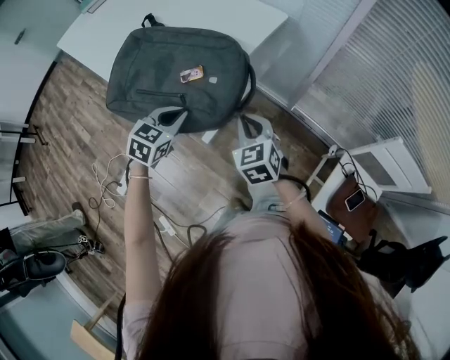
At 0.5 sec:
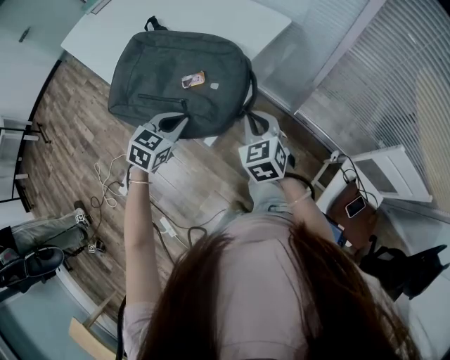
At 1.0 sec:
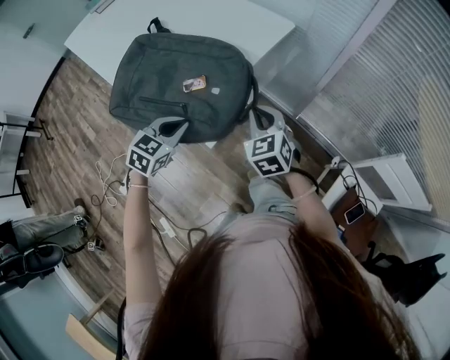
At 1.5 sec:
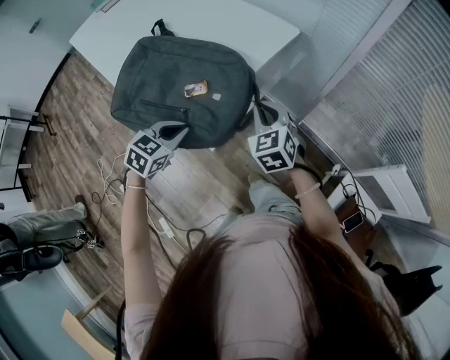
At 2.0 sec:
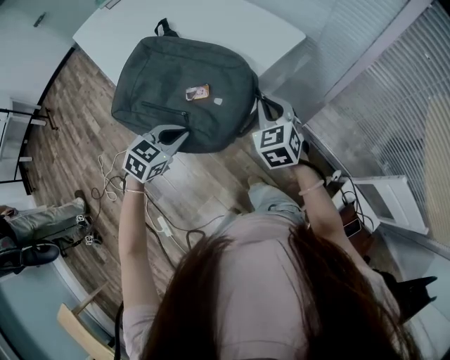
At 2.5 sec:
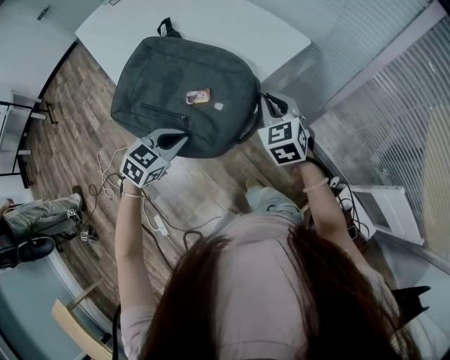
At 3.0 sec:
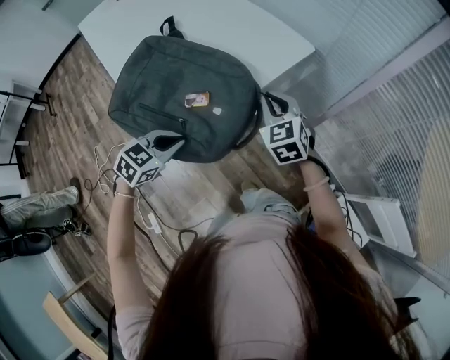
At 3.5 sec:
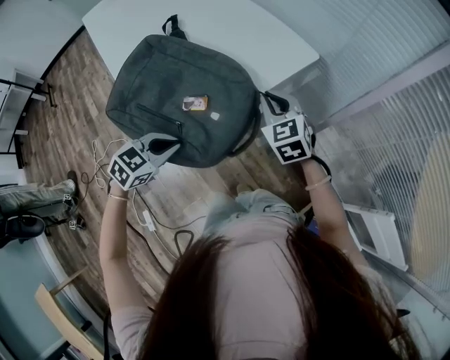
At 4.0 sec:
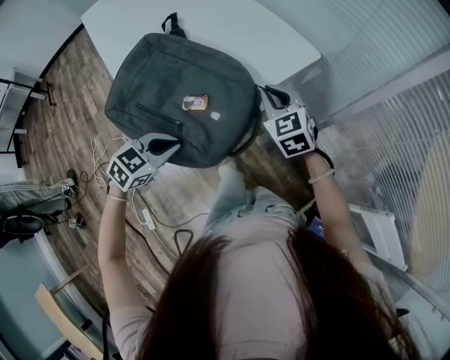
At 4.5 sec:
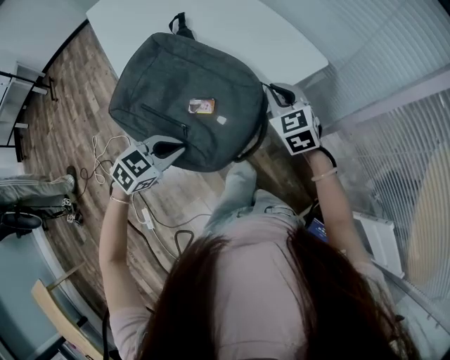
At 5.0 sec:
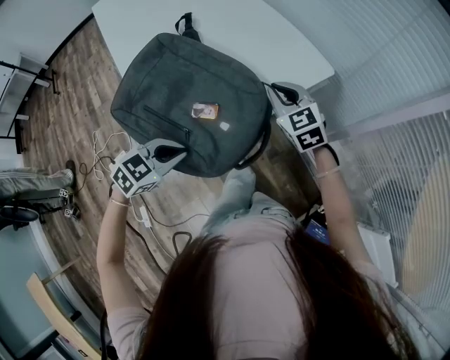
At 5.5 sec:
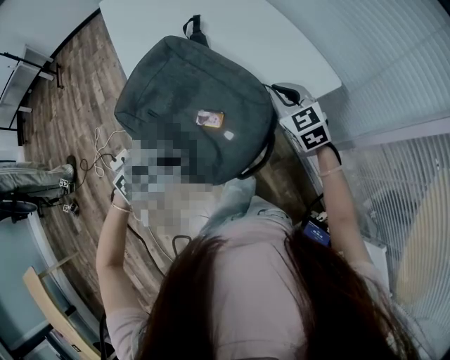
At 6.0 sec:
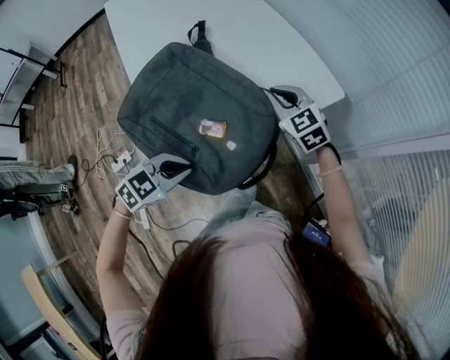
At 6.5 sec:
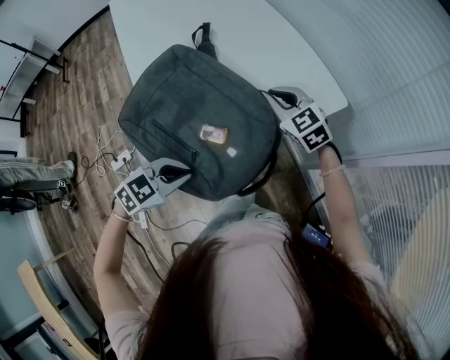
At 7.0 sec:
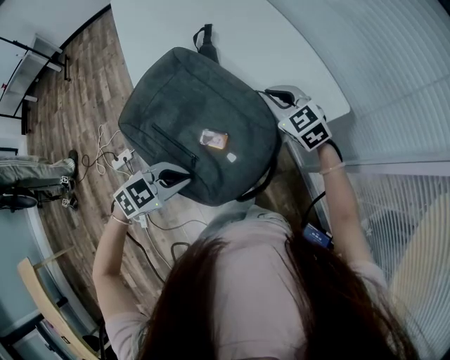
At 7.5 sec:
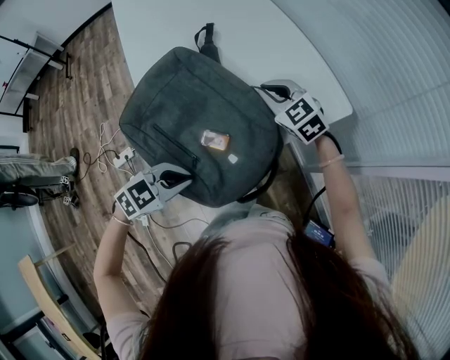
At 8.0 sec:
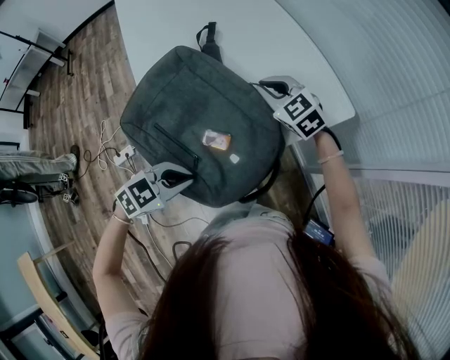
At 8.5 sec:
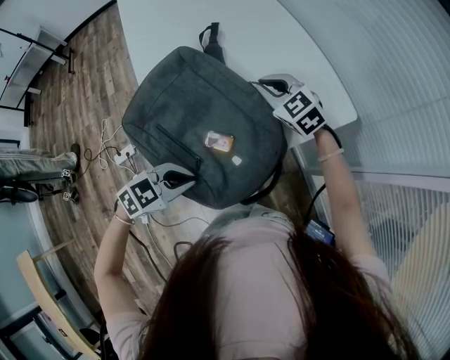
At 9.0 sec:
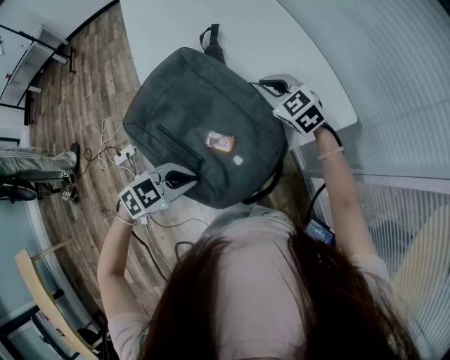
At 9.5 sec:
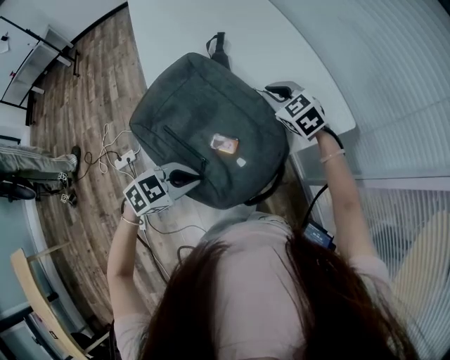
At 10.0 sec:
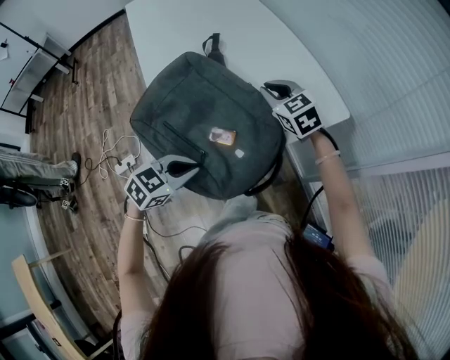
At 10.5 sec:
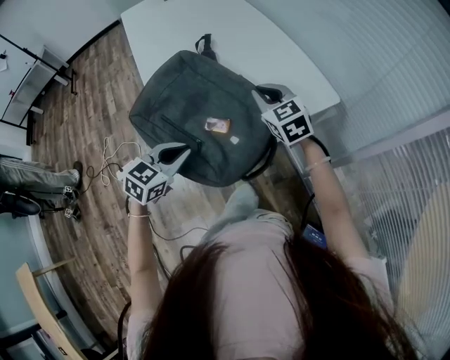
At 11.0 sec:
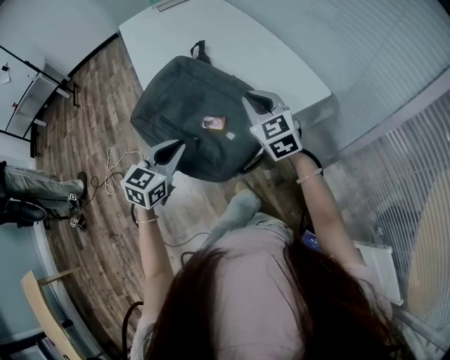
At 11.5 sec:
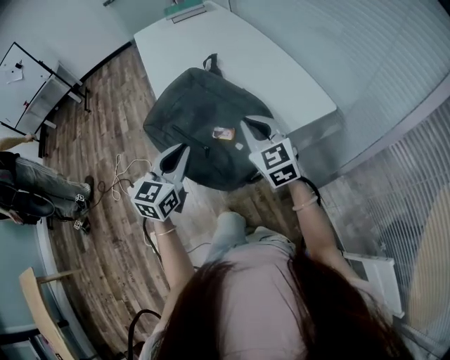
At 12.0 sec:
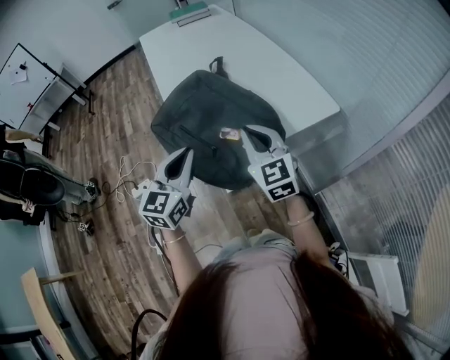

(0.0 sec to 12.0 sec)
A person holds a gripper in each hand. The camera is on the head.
0.0 sec - 2.0 sec: The right gripper is displaced forward by roughly 15 cm.
2.0 sec - 4.0 sec: The right gripper goes about 10 cm forward.
4.0 sec - 6.0 sec: The right gripper heads forward and to the left, covering some 10 cm.
6.0 sec - 8.0 sec: The right gripper moves to the left and forward, roughly 10 cm.
8.0 sec - 10.0 sec: There are only small adjustments of the grippers.
10.0 sec - 12.0 sec: The right gripper travels backward and upward by some 20 cm, and turns by about 20 degrees; the left gripper moves upward, about 15 cm, and tilts its fingers about 30 degrees upward.

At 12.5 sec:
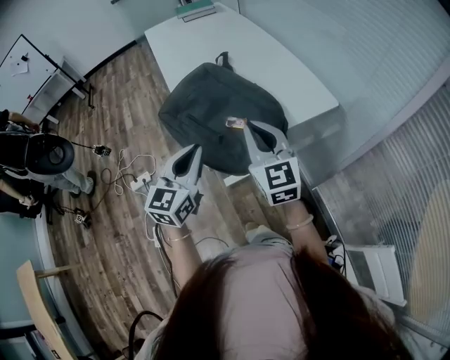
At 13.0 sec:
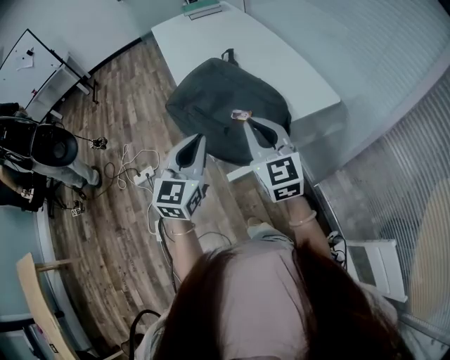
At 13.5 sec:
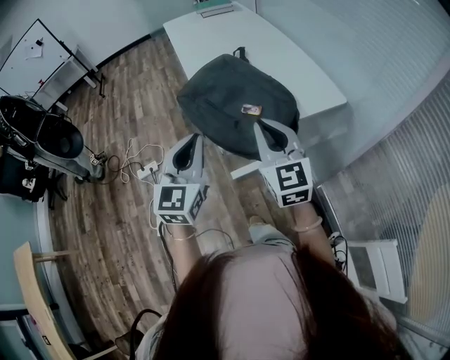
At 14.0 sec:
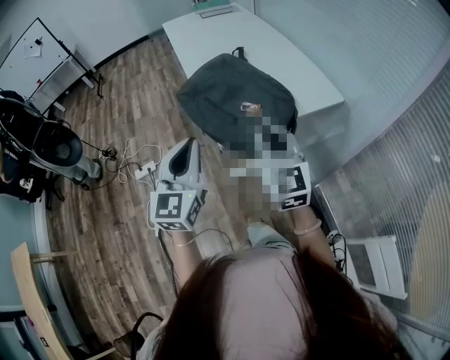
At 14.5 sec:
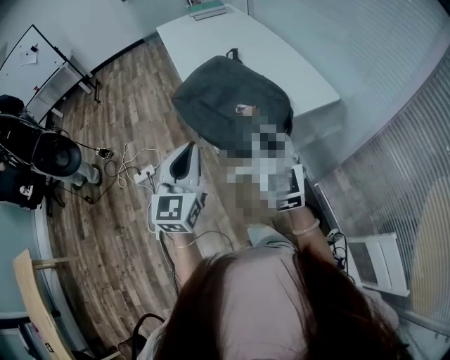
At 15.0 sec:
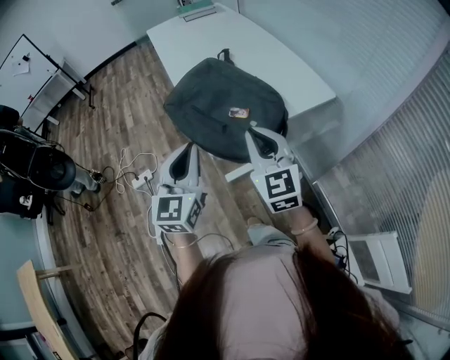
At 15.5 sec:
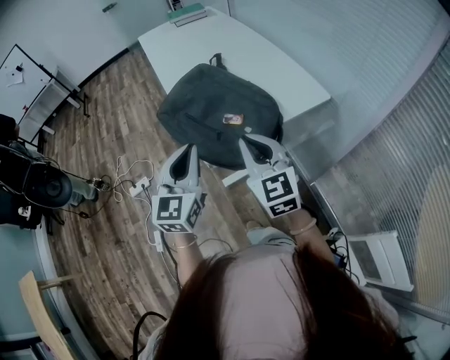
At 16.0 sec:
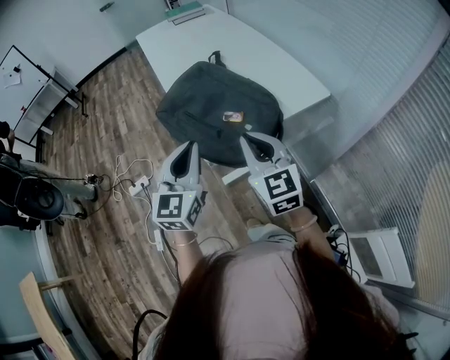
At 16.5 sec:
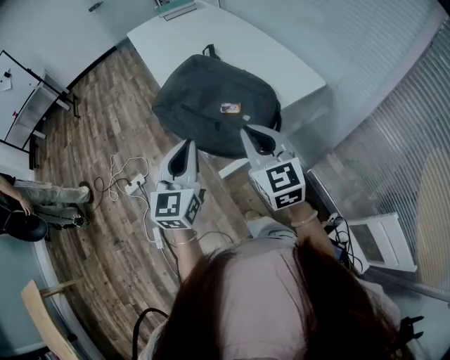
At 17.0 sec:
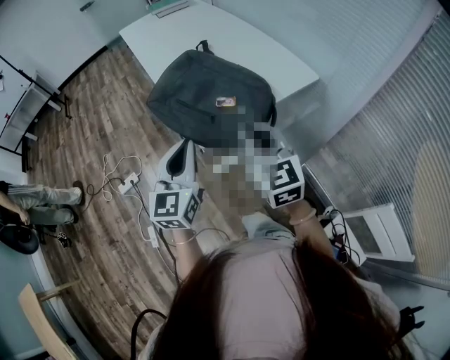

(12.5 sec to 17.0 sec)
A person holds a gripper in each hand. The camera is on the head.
12.5 sec - 14.5 sec: Both grippers travel together backward, some 10 cm.

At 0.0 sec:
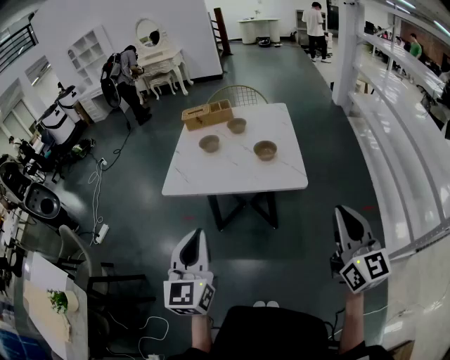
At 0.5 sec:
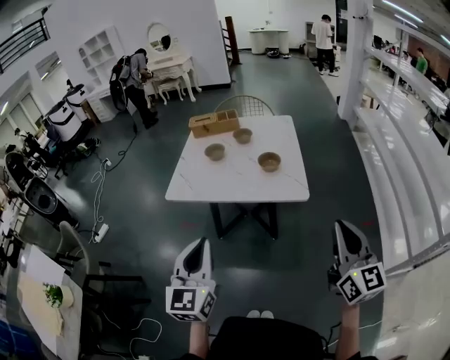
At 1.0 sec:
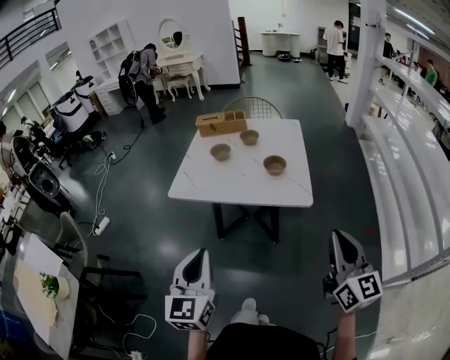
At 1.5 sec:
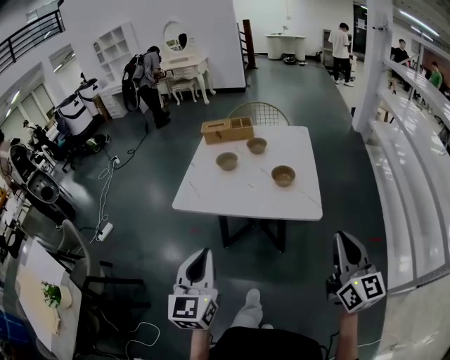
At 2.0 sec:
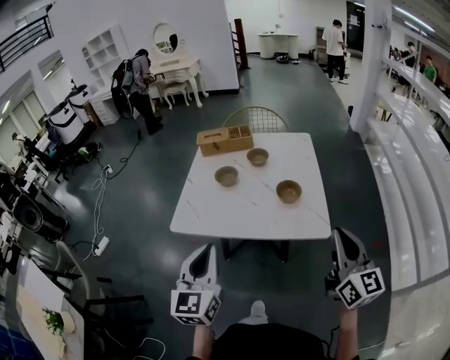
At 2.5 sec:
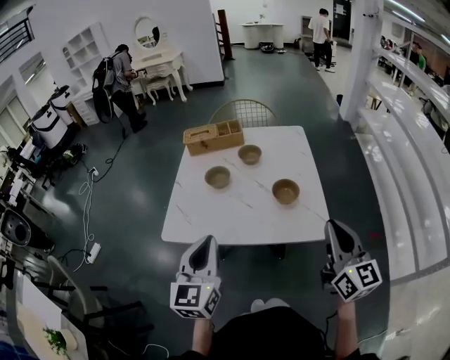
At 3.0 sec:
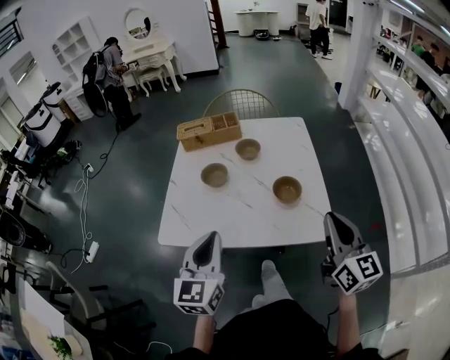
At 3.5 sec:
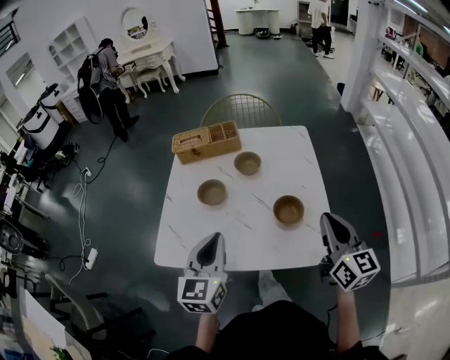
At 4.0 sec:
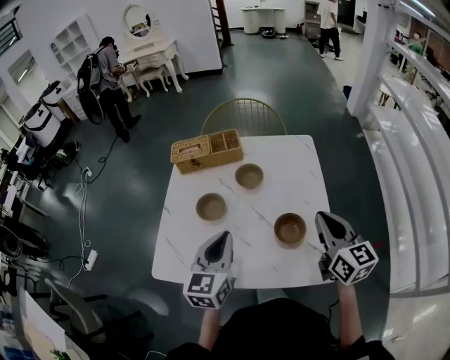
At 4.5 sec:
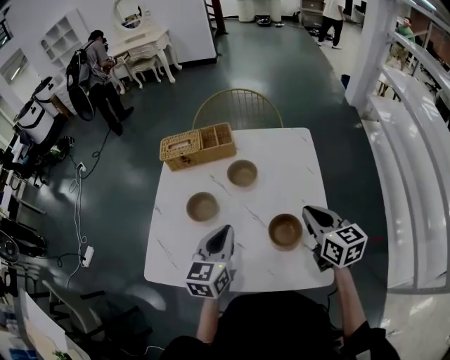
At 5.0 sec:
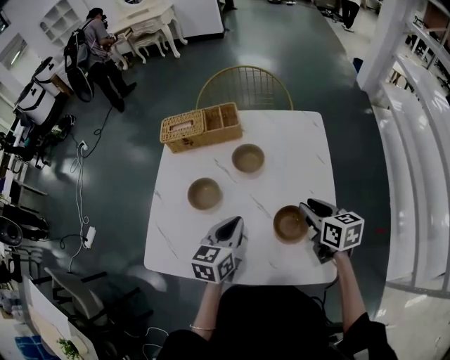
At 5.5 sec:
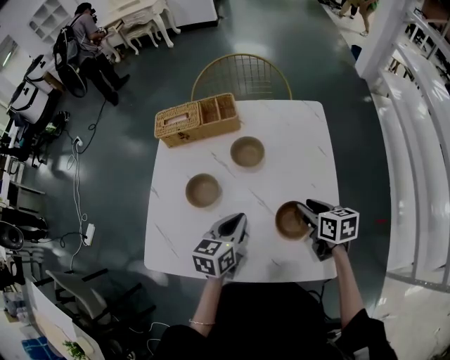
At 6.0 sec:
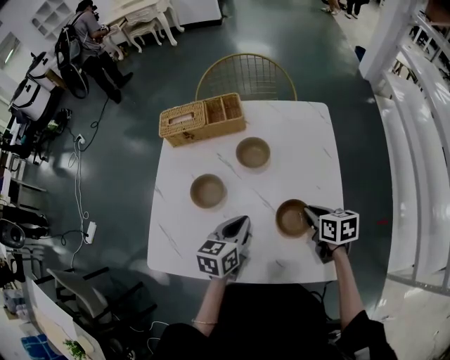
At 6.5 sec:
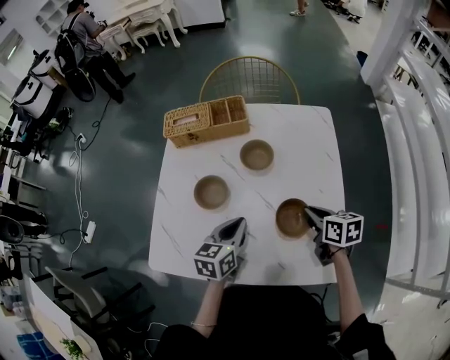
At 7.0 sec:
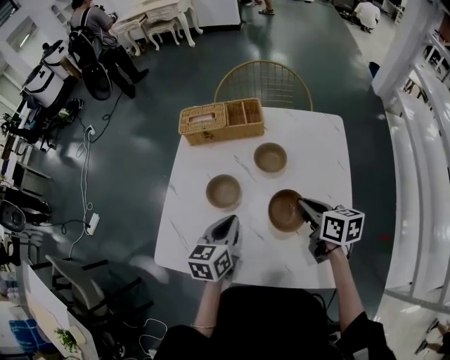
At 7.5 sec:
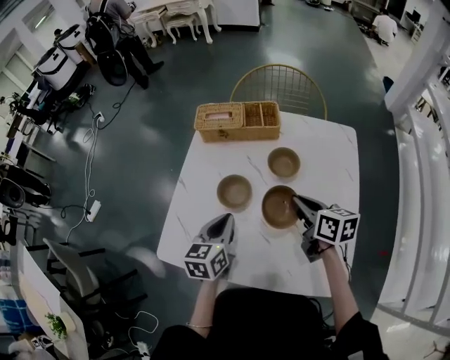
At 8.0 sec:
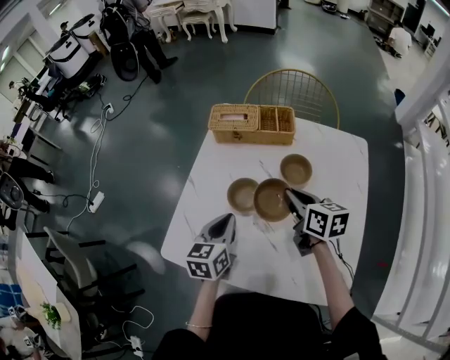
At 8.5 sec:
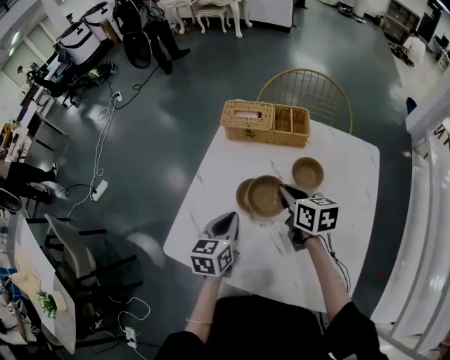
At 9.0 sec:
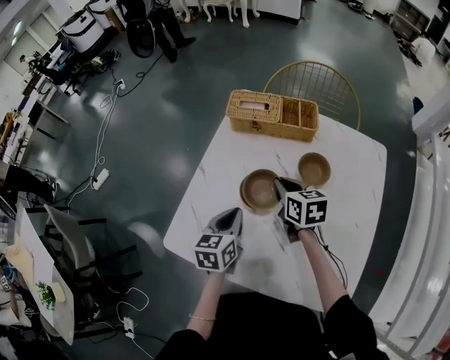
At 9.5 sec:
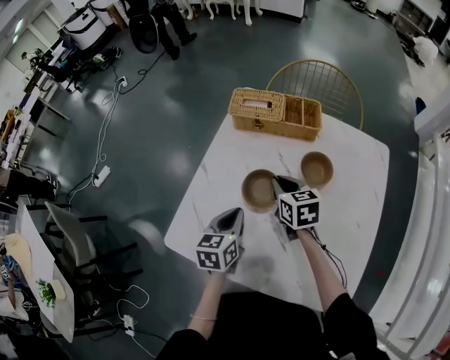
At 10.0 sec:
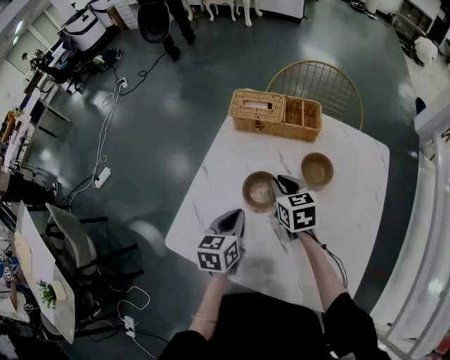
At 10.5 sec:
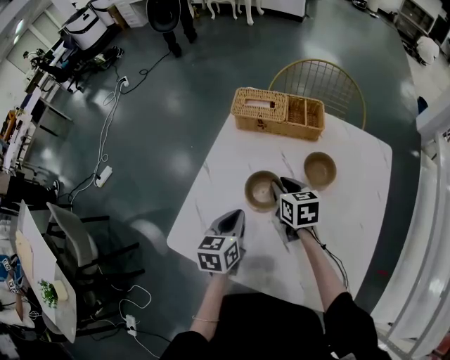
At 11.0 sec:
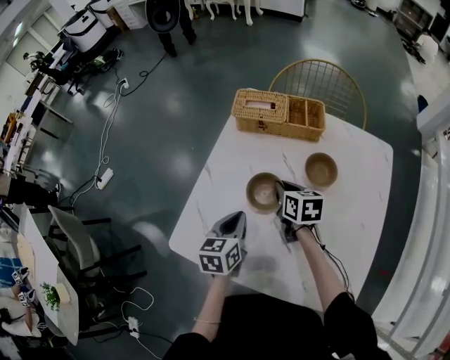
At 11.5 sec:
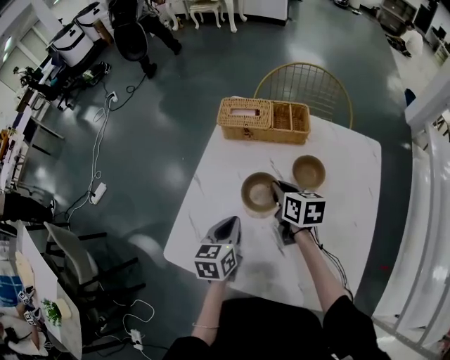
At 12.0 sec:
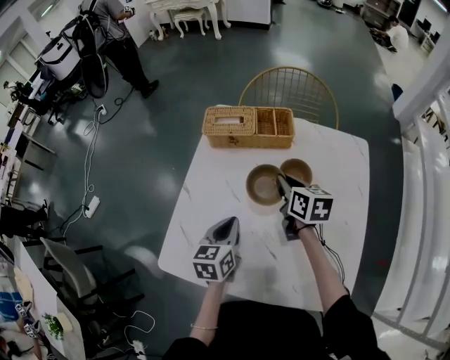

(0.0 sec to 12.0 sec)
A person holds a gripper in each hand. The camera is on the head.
0.0 sec - 2.0 sec: Both grippers move forward, approximately 15 cm.
2.0 sec - 4.0 sec: The two grippers go about 30 cm forward.
4.0 sec - 6.0 sec: The left gripper goes approximately 15 cm downward and forward, and turns by roughly 30 degrees; the right gripper is displaced downward by some 20 cm, tilts its fingers roughly 40 degrees downward, and opens, then closes again.
6.0 sec - 8.0 sec: The left gripper travels to the left by roughly 15 cm, and swivels about 20 degrees. Meanwhile the right gripper is displaced to the left, forward and upward by about 25 cm, and rotates roughly 20 degrees.
8.0 sec - 10.0 sec: The right gripper goes some 10 cm to the left, downward and forward, and changes its angle by approximately 20 degrees; the left gripper ends up some 5 cm from where it was.
10.0 sec - 12.0 sec: The right gripper is displaced to the right by about 10 cm, and changes its angle by about 30 degrees.
